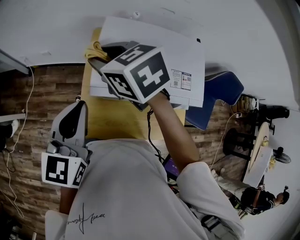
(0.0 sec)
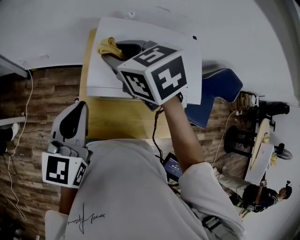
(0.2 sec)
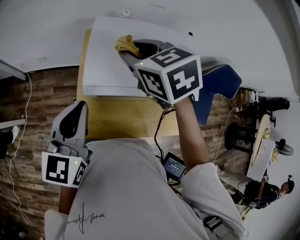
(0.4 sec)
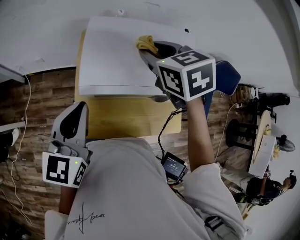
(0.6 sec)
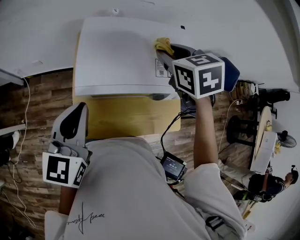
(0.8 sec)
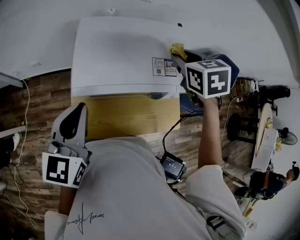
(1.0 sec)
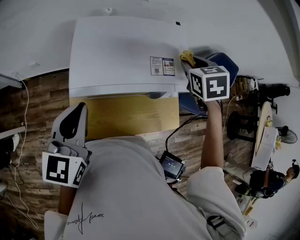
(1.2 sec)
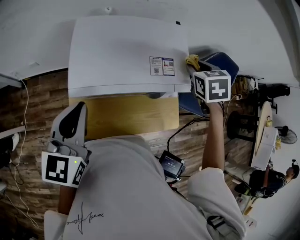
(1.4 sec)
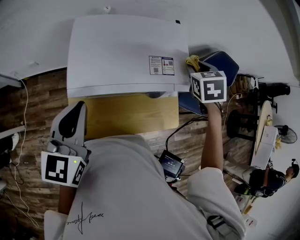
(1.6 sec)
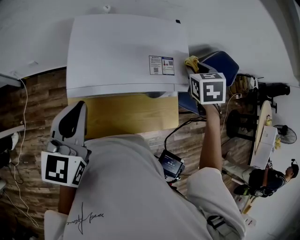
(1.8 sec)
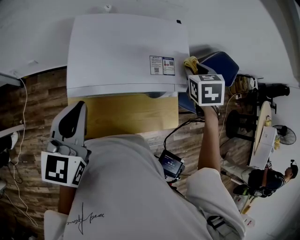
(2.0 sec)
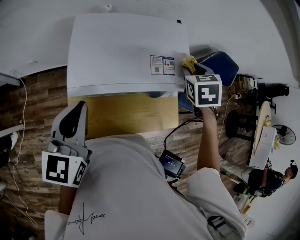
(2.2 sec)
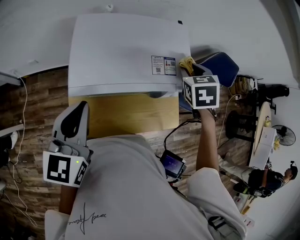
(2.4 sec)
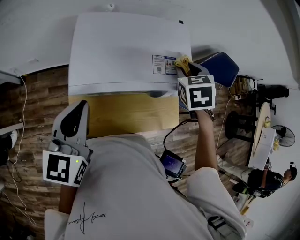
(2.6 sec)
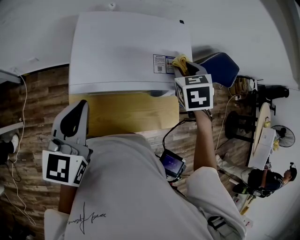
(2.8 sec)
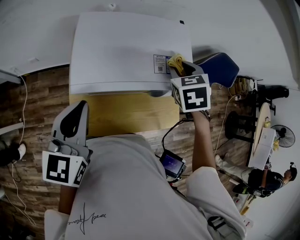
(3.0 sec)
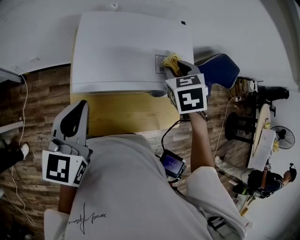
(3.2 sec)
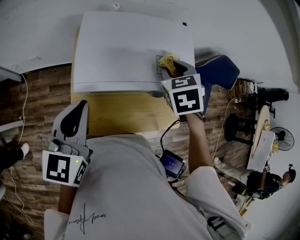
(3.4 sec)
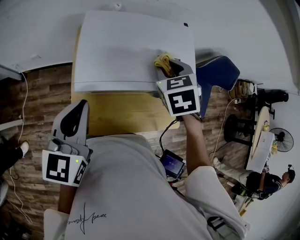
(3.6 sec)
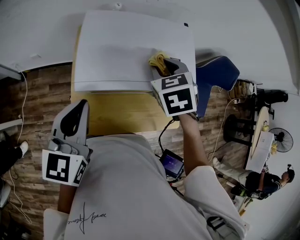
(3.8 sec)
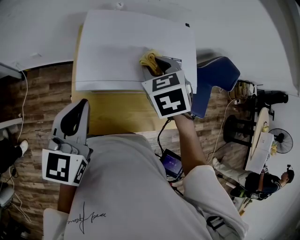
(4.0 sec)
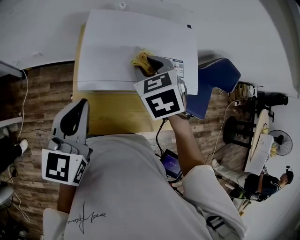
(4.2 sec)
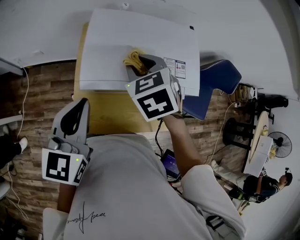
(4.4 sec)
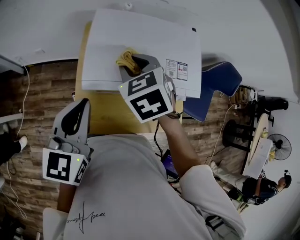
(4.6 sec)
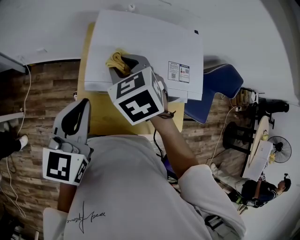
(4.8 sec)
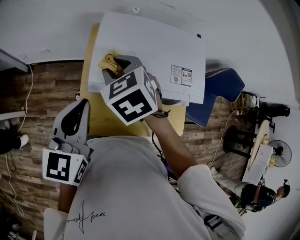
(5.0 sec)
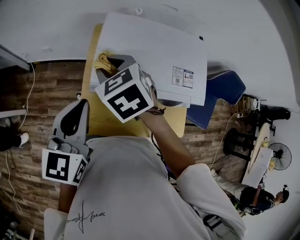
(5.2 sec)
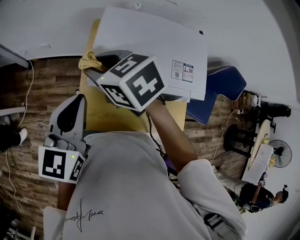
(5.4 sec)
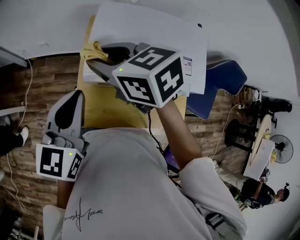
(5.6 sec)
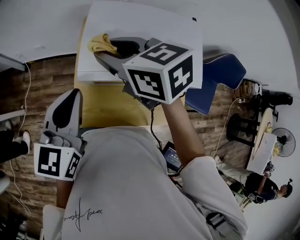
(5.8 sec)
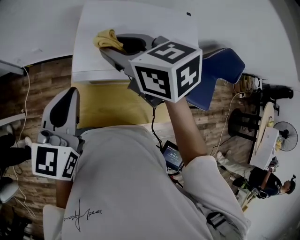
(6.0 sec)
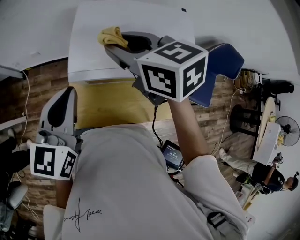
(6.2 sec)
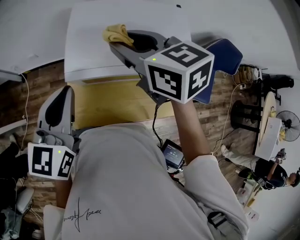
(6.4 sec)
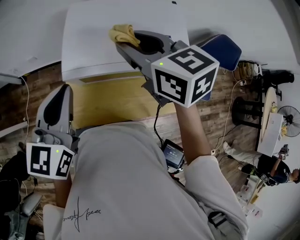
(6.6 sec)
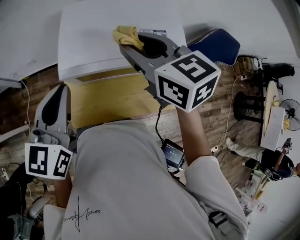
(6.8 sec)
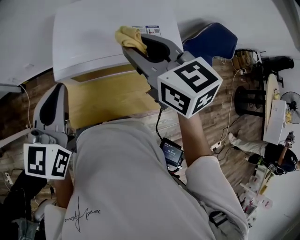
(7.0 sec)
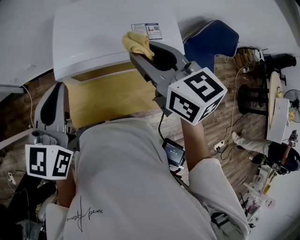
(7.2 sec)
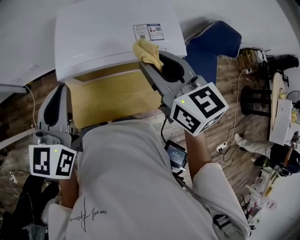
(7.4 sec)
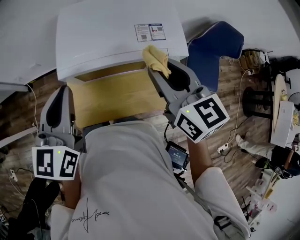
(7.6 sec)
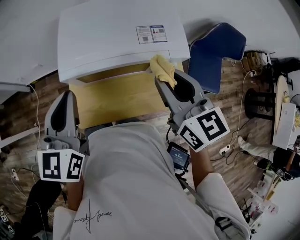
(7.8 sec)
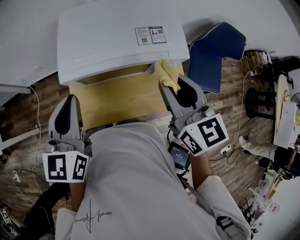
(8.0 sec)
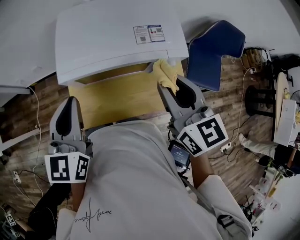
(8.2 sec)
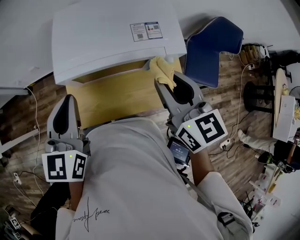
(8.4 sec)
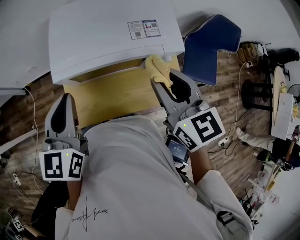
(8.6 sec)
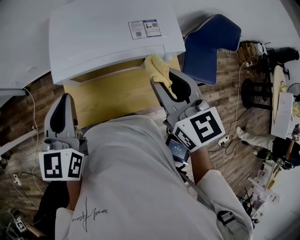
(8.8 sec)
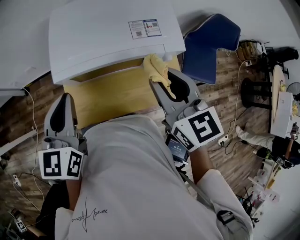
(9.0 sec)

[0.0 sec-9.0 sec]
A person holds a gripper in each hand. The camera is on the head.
0.0 sec to 1.6 sec: The right gripper ends up about 40 cm from where it was, and changes its angle by roughly 50 degrees; the left gripper moves about 5 cm.
1.6 sec to 3.0 sec: The right gripper goes about 10 cm to the left.
3.0 sec to 4.4 sec: The right gripper moves to the left, about 20 cm.
4.4 sec to 6.0 sec: The right gripper is displaced upward by roughly 5 cm, and changes its angle by about 40 degrees.
6.0 sec to 7.6 sec: The right gripper is displaced to the right and backward by approximately 20 cm, and swivels approximately 30 degrees. Meanwhile the left gripper shifts by roughly 5 cm.
7.6 sec to 9.0 sec: The grippers stay close to where they were, moving slightly.

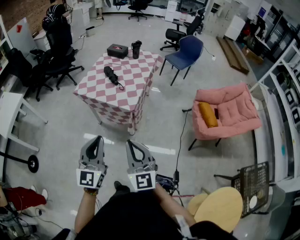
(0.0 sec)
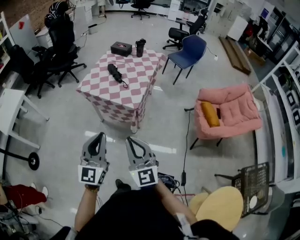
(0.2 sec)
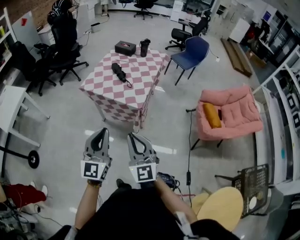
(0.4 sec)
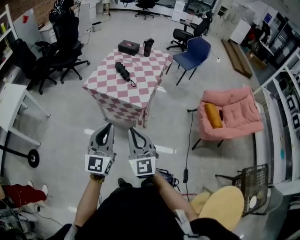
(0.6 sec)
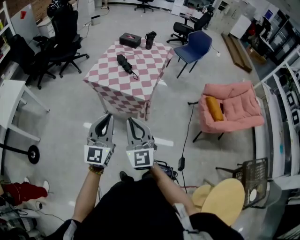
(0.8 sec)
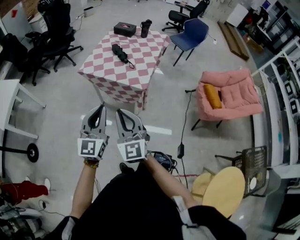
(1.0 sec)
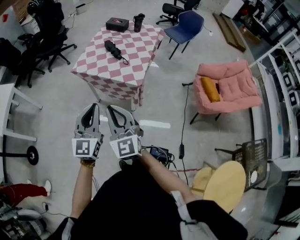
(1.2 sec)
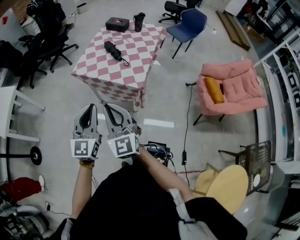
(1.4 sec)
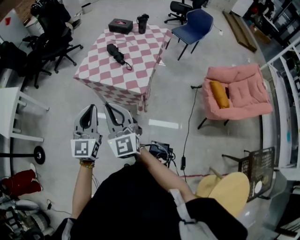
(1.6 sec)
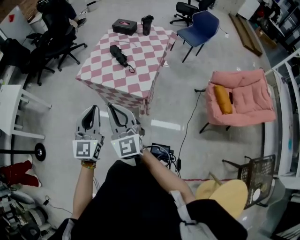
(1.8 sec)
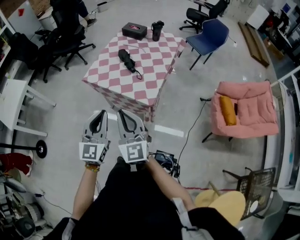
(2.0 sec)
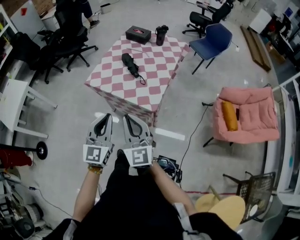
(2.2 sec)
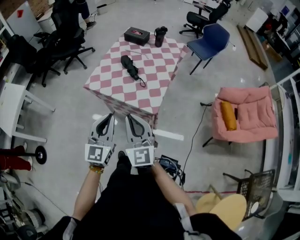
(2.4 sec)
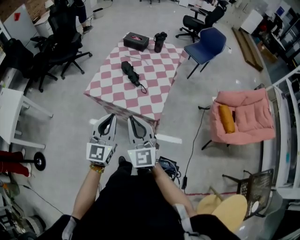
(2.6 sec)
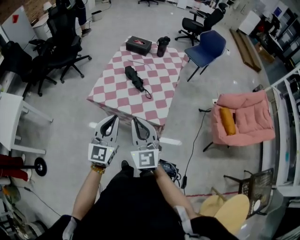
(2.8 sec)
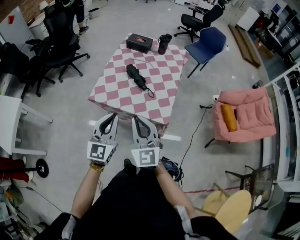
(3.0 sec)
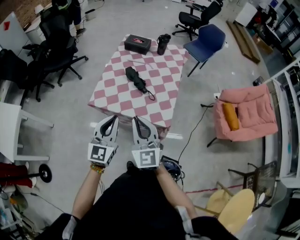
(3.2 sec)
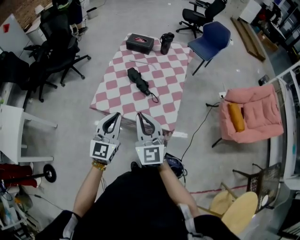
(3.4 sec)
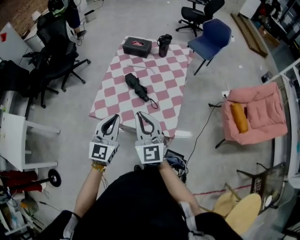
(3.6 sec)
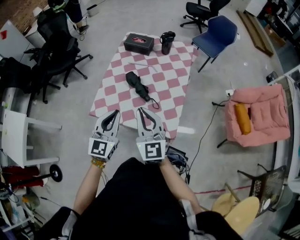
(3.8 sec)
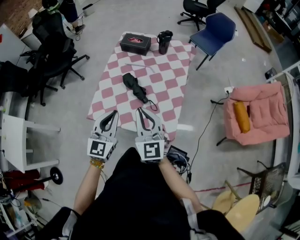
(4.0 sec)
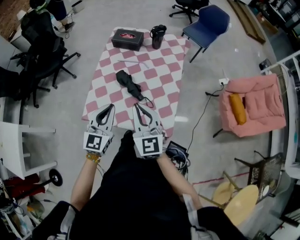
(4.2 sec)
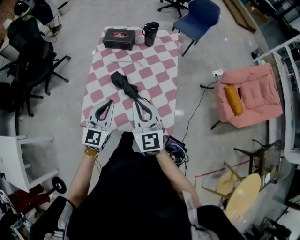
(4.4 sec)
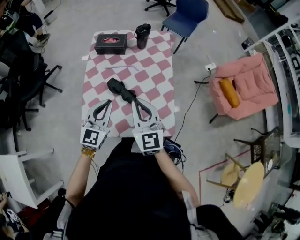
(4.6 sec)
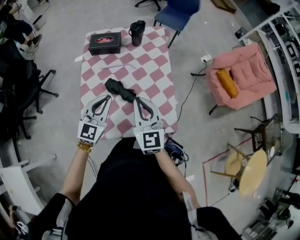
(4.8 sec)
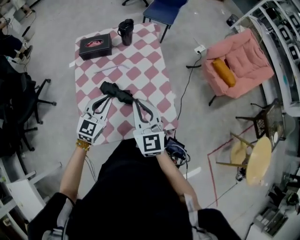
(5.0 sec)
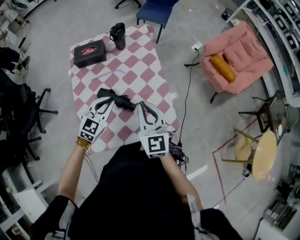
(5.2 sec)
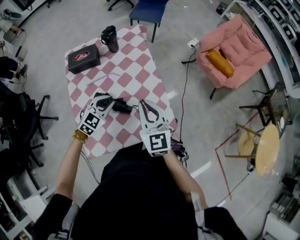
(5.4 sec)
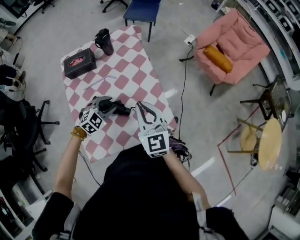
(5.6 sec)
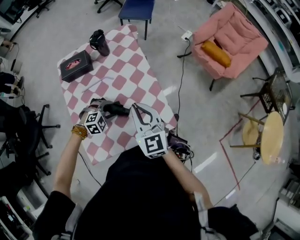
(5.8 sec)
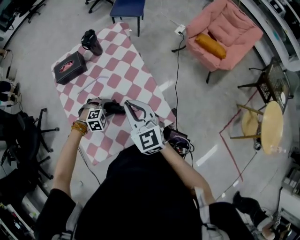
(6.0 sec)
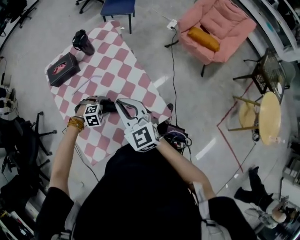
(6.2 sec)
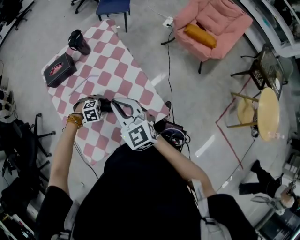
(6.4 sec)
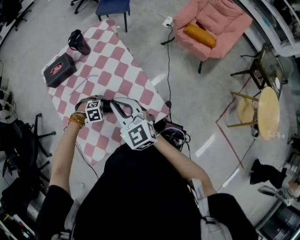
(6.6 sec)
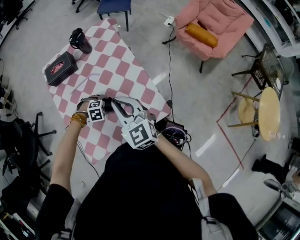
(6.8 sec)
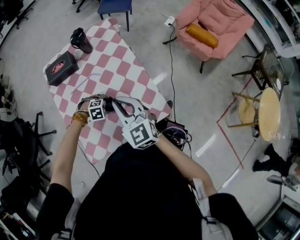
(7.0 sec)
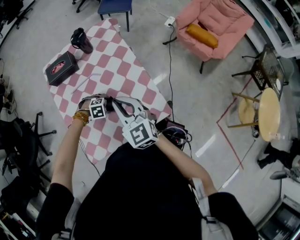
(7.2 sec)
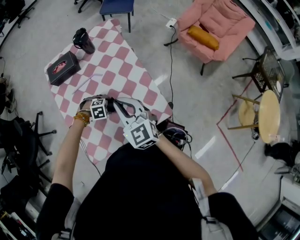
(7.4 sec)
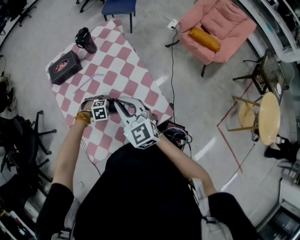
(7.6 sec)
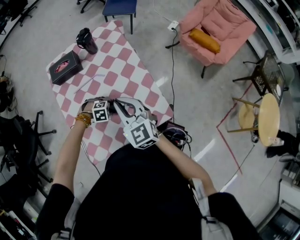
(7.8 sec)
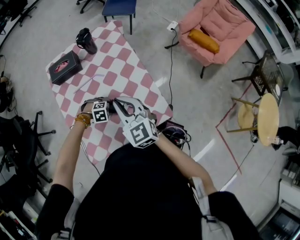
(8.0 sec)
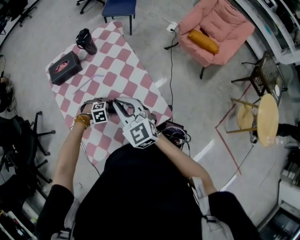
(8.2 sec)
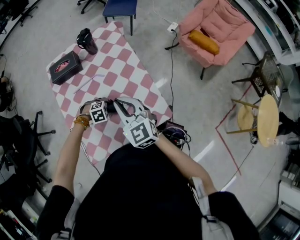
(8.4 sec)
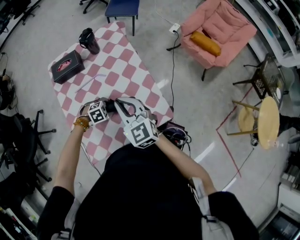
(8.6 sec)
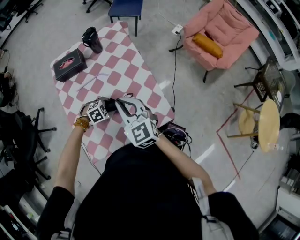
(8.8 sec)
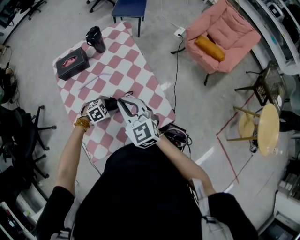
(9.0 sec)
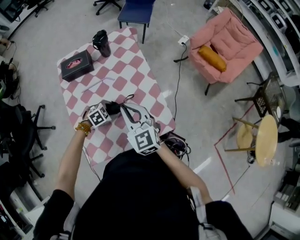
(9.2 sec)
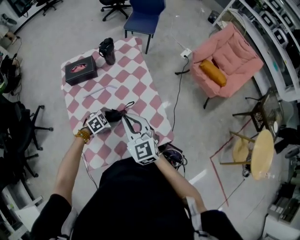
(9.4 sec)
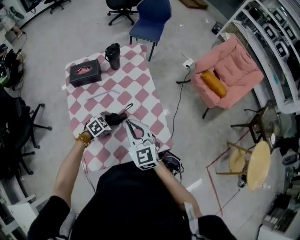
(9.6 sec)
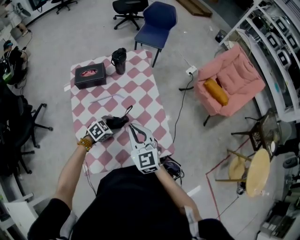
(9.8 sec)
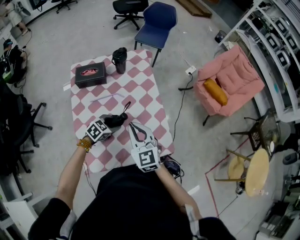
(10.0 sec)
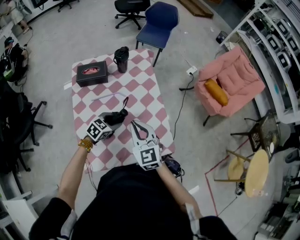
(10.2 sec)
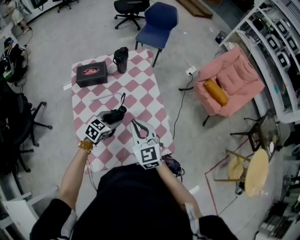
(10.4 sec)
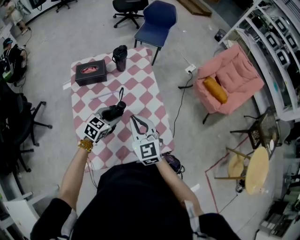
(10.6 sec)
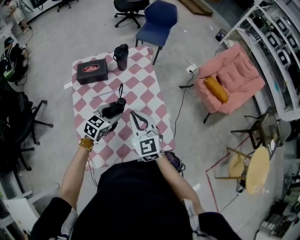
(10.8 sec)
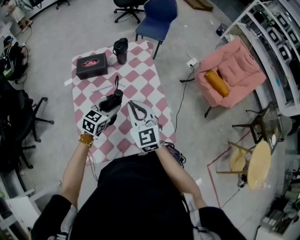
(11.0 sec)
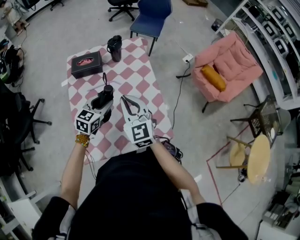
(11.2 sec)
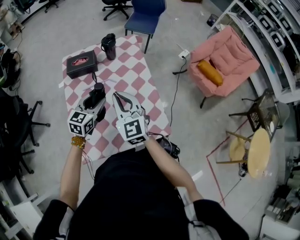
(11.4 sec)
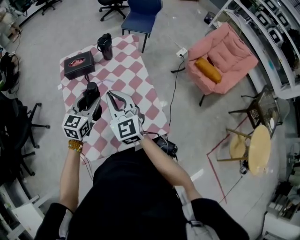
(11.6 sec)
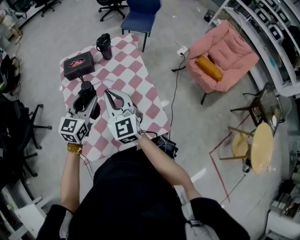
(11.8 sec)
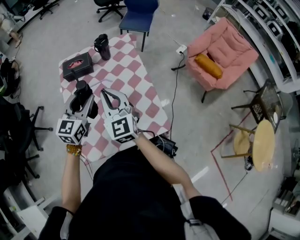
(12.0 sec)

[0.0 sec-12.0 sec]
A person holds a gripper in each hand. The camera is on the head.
0.0 sec to 1.6 sec: The two grippers go roughly 20 cm forward and to the left.
1.6 sec to 3.0 sec: The right gripper is displaced forward by approximately 20 cm. Meanwhile the left gripper moves forward and to the left, about 20 cm.
3.0 sec to 4.4 sec: The two grippers go roughly 30 cm forward.
4.4 sec to 6.0 sec: The right gripper ends up some 10 cm from where it was, and rotates roughly 20 degrees; the left gripper heads downward, covering approximately 25 cm, tilts its fingers approximately 60 degrees downward, and opens.
6.0 sec to 7.6 sec: The grippers move only a little.
7.6 sec to 9.0 sec: The left gripper turns by about 30 degrees.
9.0 sec to 10.4 sec: The left gripper moves upward, approximately 10 cm, and changes its angle by some 40 degrees.
10.4 sec to 12.0 sec: The right gripper is displaced upward by about 5 cm; the left gripper travels upward by approximately 15 cm, and rotates about 30 degrees.

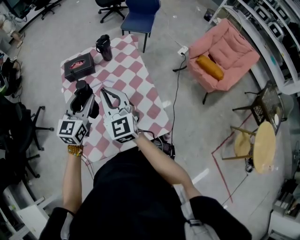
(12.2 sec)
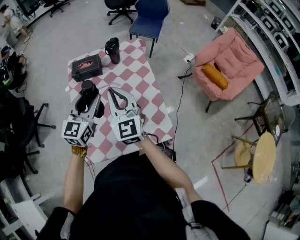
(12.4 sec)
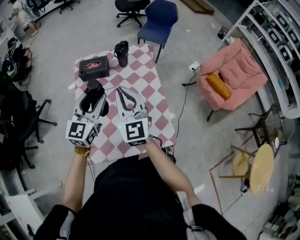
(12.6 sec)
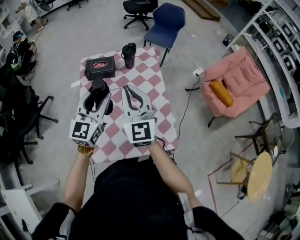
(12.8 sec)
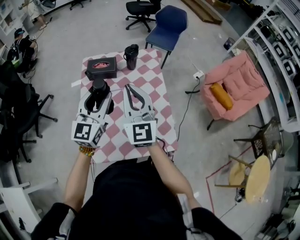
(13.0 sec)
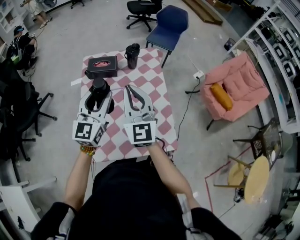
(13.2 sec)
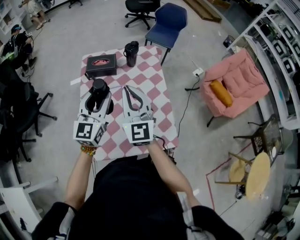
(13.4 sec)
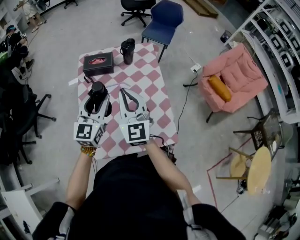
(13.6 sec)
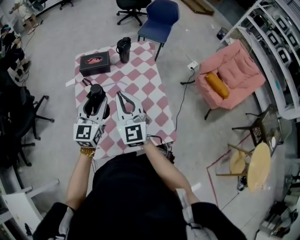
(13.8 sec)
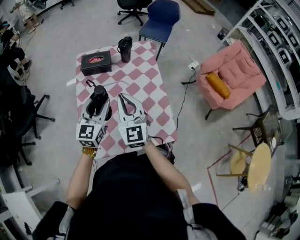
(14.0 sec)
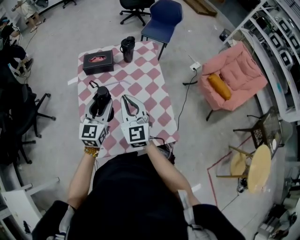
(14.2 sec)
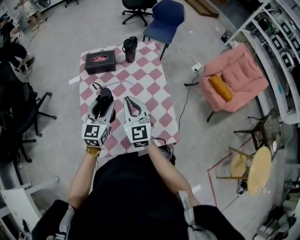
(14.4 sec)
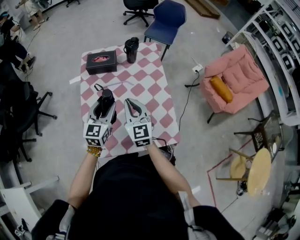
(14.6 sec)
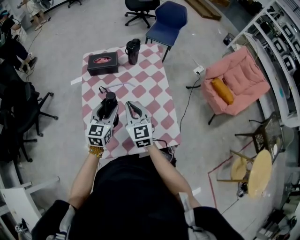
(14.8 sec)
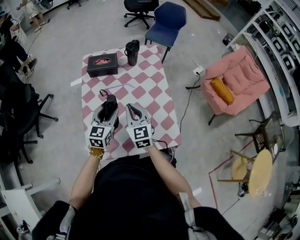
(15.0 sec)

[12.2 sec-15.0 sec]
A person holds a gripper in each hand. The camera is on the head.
13.6 sec to 15.0 sec: The two grippers go some 15 cm downward.
